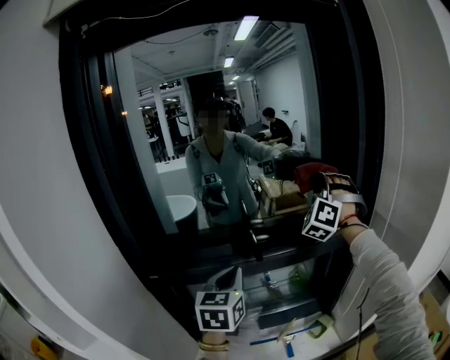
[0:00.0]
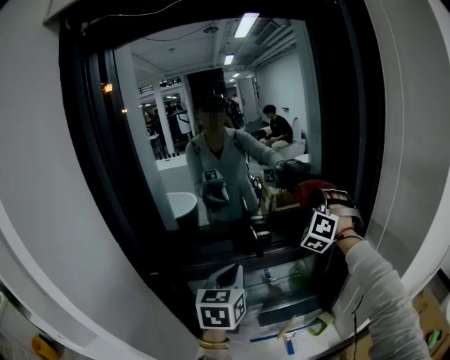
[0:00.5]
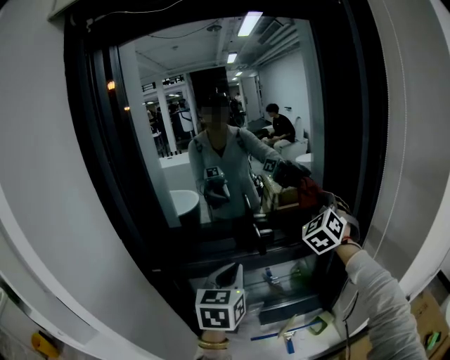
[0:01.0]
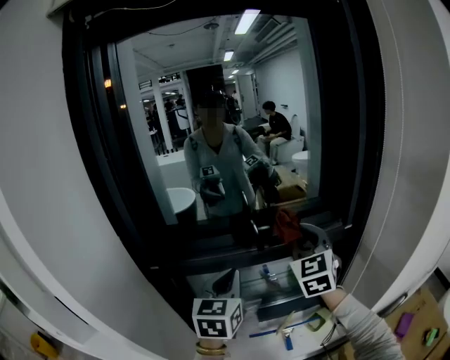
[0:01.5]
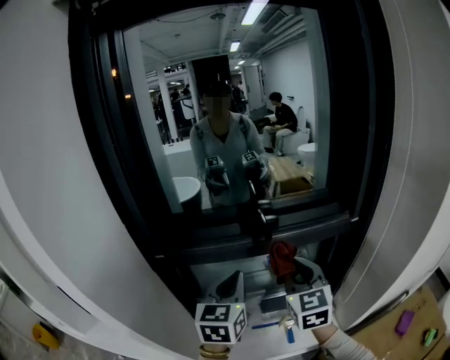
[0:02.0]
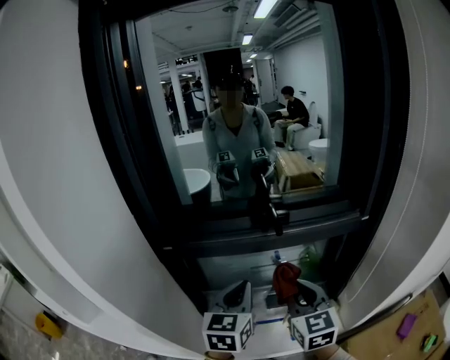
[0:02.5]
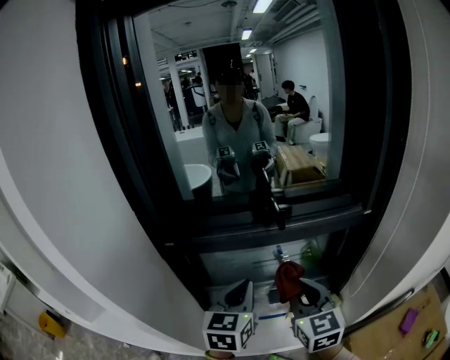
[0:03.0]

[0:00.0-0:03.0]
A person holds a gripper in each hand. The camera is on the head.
0:00.0 to 0:01.5: The right gripper shifts about 20 cm backward, downward and to the left, and rotates around the line of its fingers by roughly 60 degrees, clockwise from behind.
0:01.5 to 0:03.0: The right gripper travels backward, downward and to the left by approximately 20 cm, and rotates roughly 30 degrees, while the left gripper goes some 10 cm backward and downward.

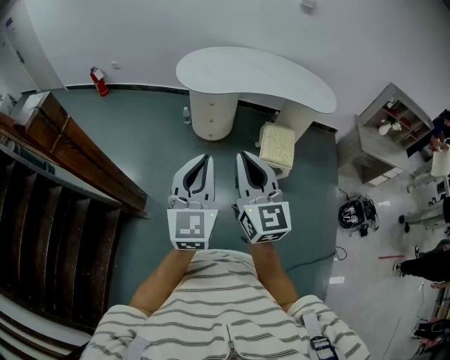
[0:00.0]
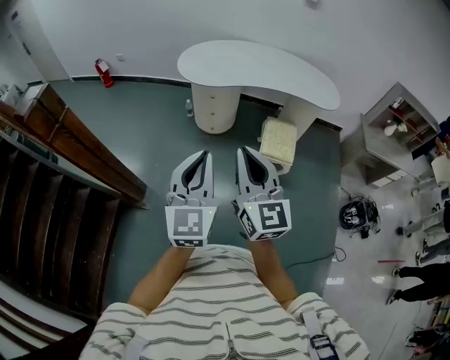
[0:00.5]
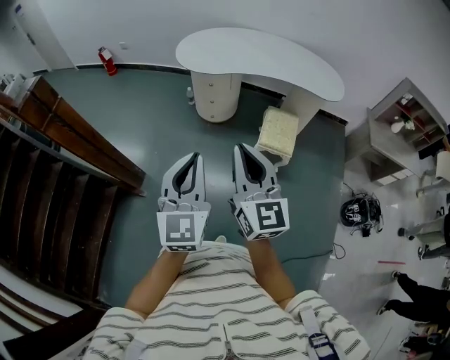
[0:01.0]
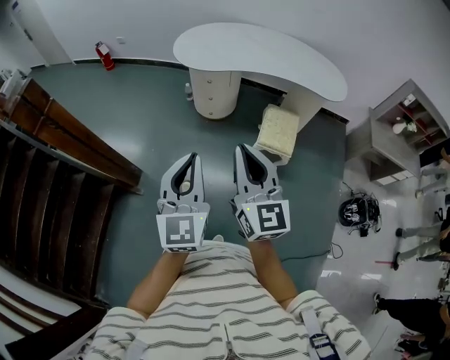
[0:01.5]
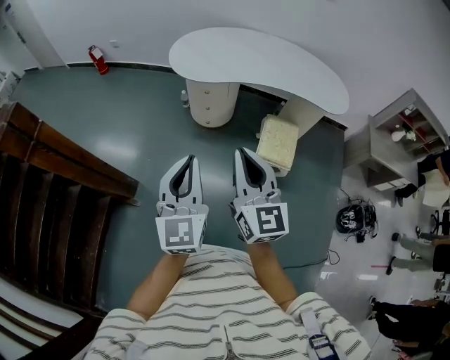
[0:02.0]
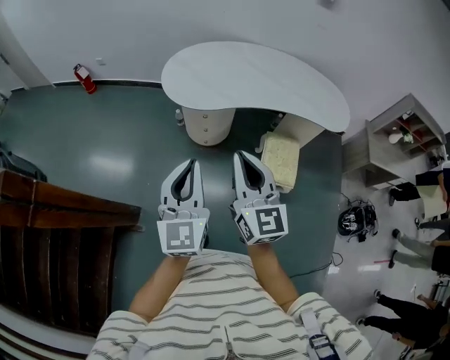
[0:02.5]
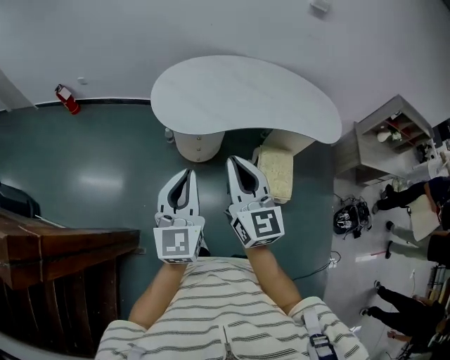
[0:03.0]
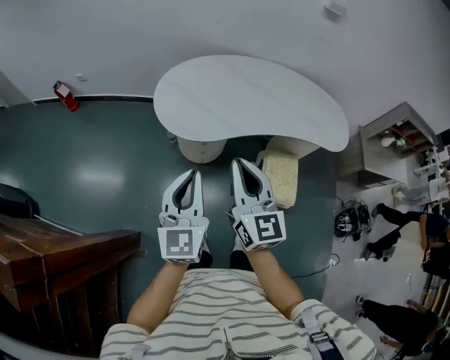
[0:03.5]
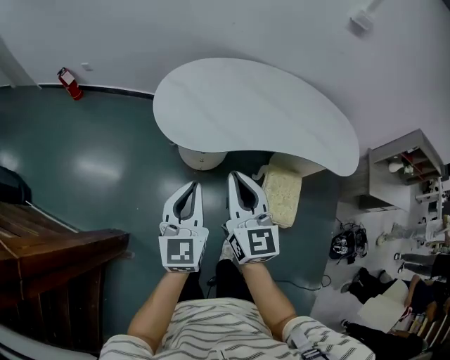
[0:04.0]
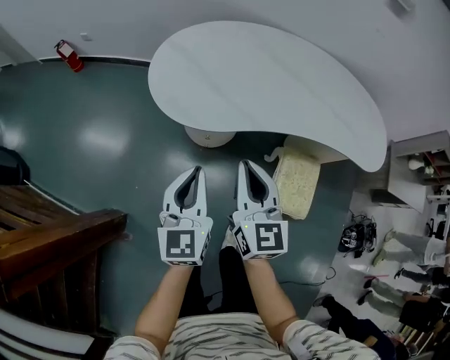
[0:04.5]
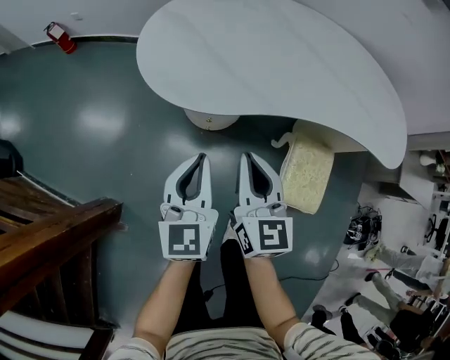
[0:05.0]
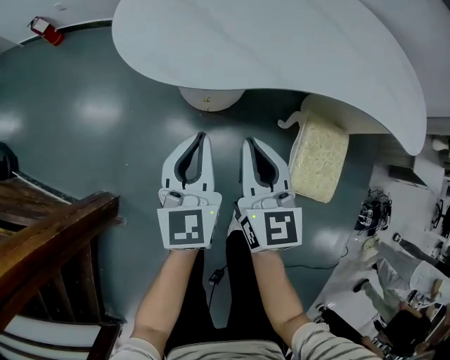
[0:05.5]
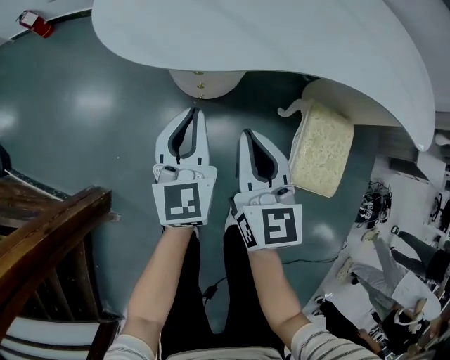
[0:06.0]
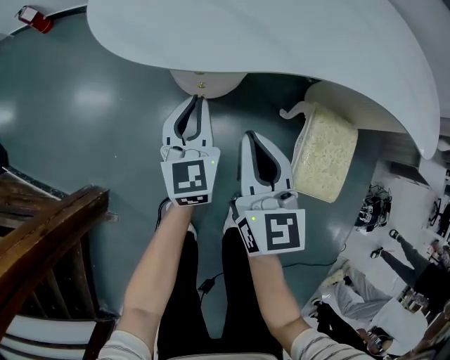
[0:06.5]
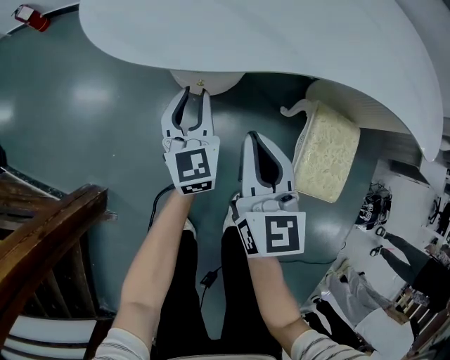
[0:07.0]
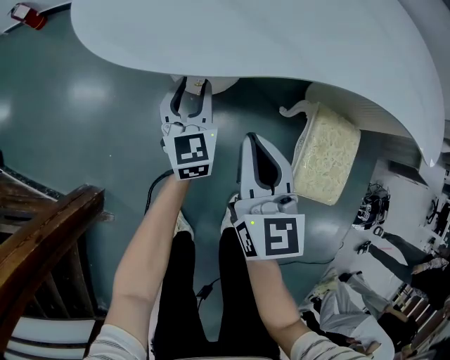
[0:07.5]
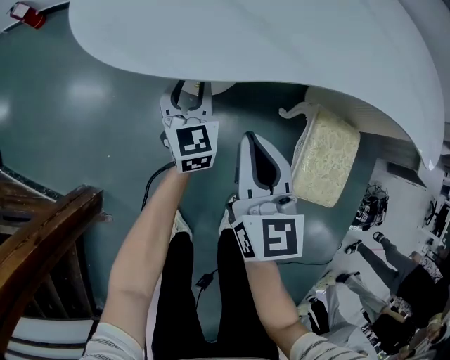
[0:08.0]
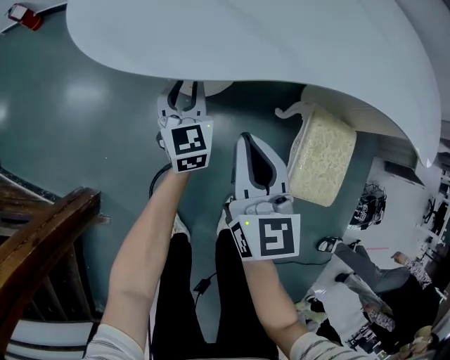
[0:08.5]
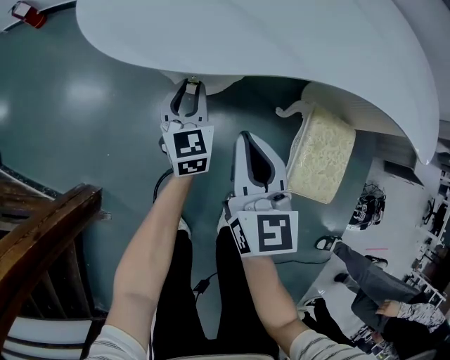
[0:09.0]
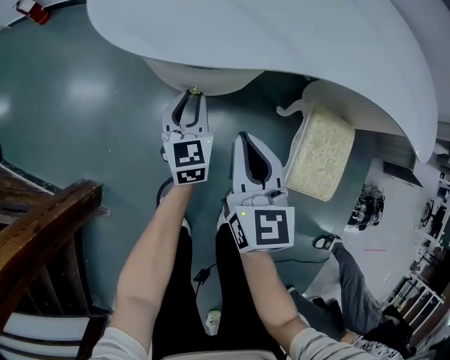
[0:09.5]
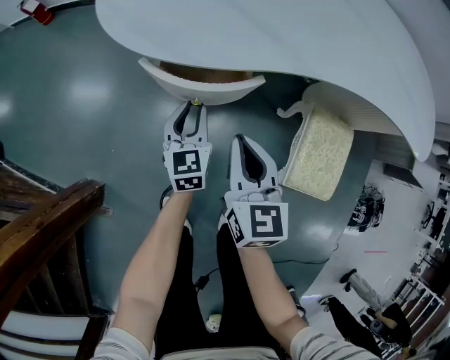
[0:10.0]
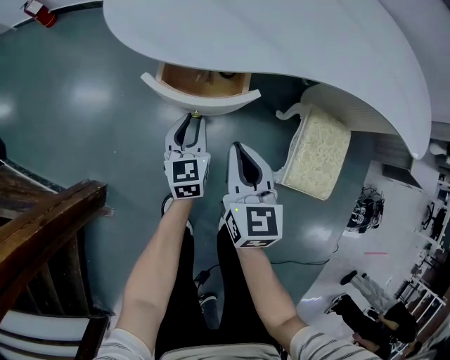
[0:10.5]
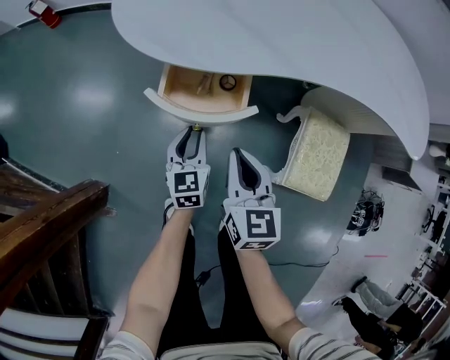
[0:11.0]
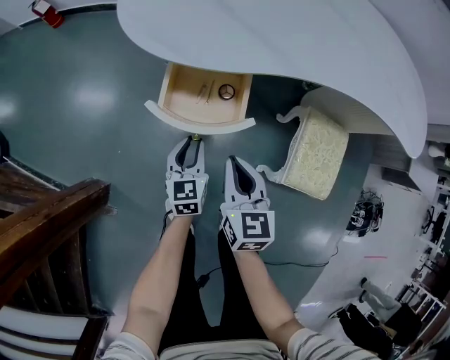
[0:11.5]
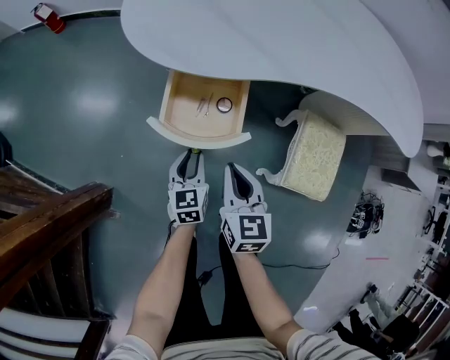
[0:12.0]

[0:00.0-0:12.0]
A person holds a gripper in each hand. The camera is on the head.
0:00.0 to 0:02.0: The left gripper is displaced forward, to the right and downward by approximately 15 cm; the right gripper goes approximately 15 cm forward and to the right.
0:02.0 to 0:04.0: Both grippers travel together forward, about 35 cm.
0:04.0 to 0:06.0: Both grippers move downward, approximately 35 cm.
0:06.0 to 0:08.0: The right gripper ends up some 5 cm from where it was, while the left gripper travels downward and forward by some 20 cm, and opens up.
0:08.0 to 0:10.0: The left gripper shifts roughly 10 cm backward.
0:10.0 to 0:12.0: The right gripper shifts approximately 10 cm backward; the left gripper heads backward, covering roughly 10 cm.

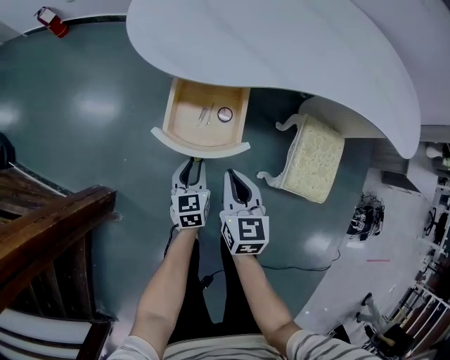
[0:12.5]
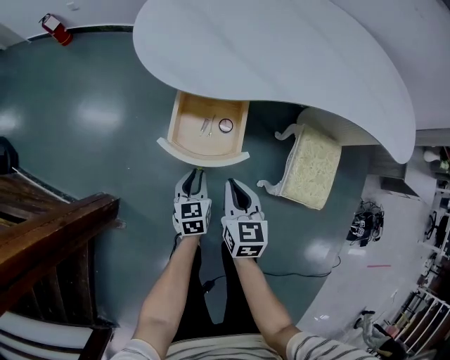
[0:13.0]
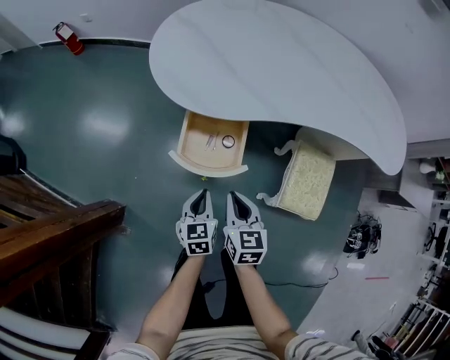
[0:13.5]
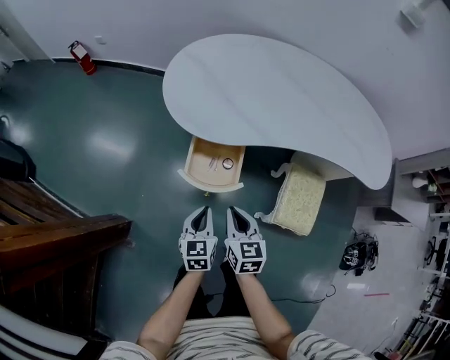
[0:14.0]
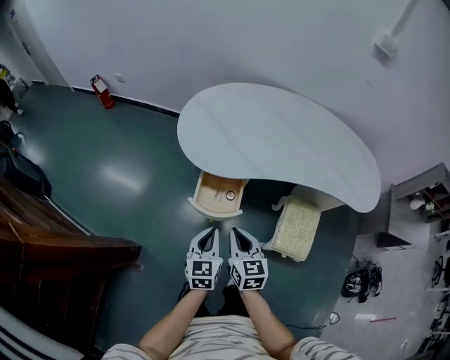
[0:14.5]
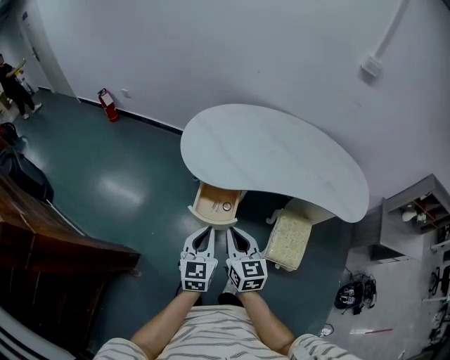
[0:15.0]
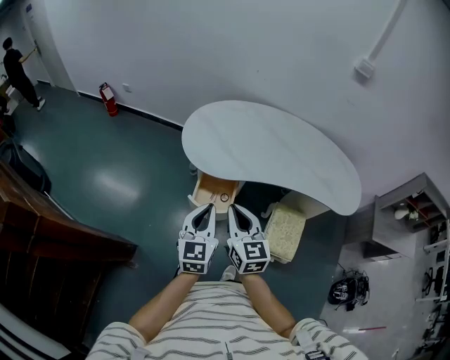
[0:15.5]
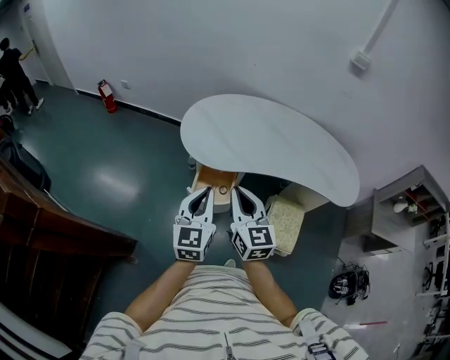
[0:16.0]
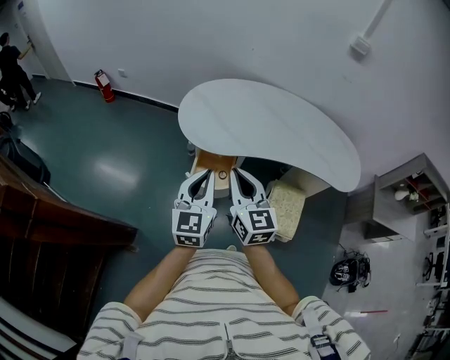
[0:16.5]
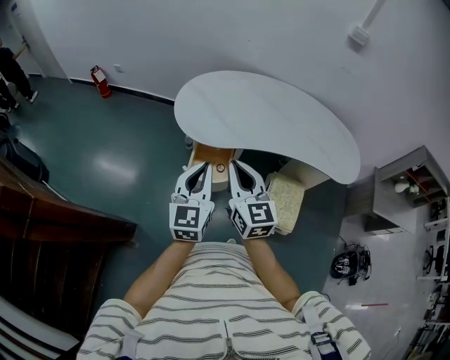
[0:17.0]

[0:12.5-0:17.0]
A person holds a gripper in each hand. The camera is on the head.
0:12.5 to 0:14.5: Both grippers move upward, some 25 cm. The left gripper closes its fingers.
0:14.5 to 0:17.0: The two grippers go roughly 20 cm upward. The left gripper turns by approximately 20 degrees. Meanwhile the right gripper turns by roughly 20 degrees.

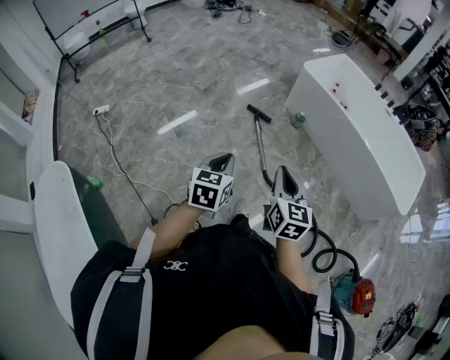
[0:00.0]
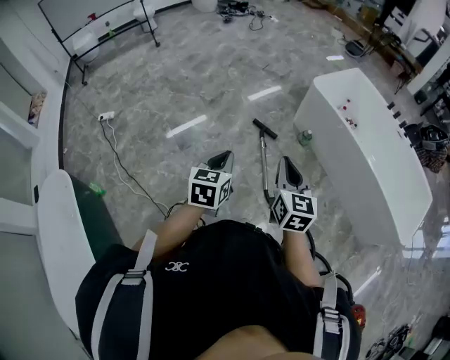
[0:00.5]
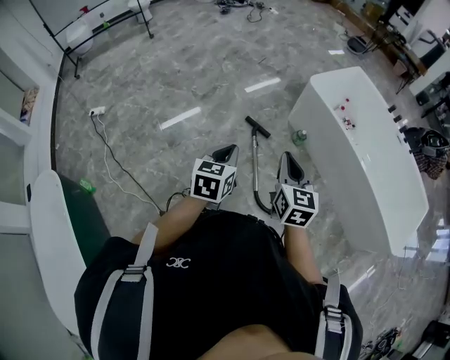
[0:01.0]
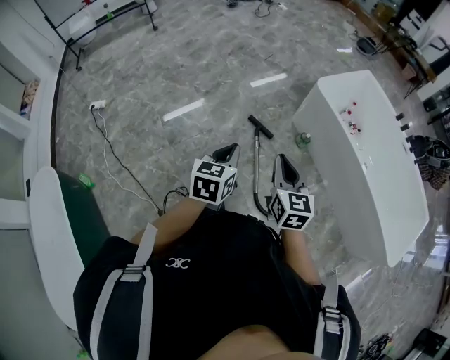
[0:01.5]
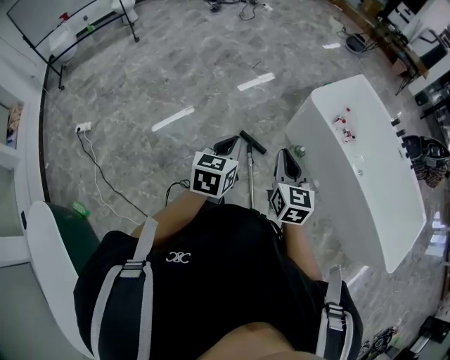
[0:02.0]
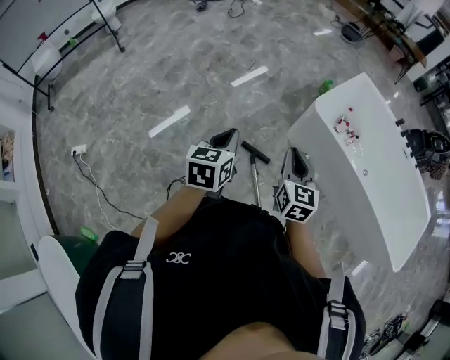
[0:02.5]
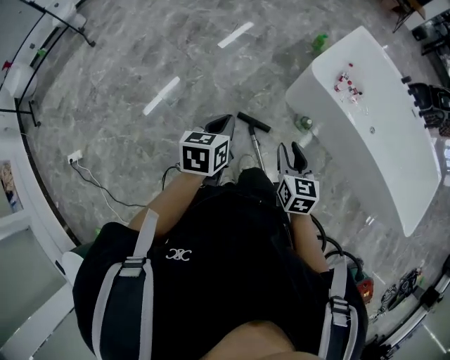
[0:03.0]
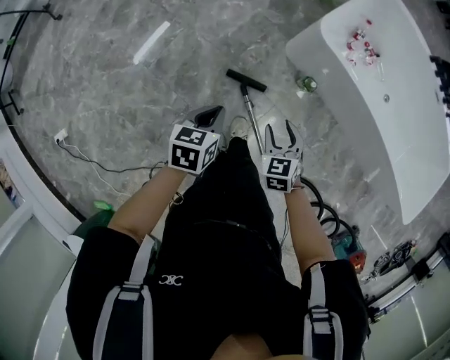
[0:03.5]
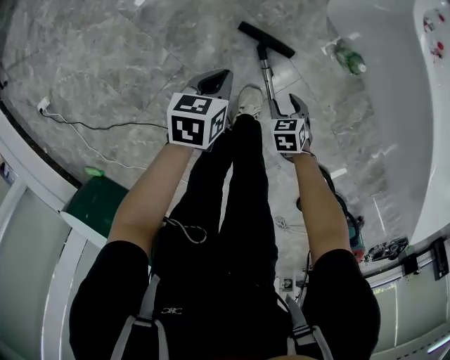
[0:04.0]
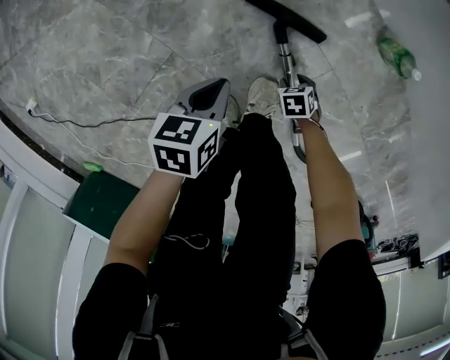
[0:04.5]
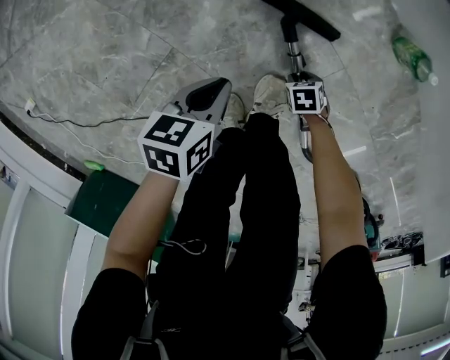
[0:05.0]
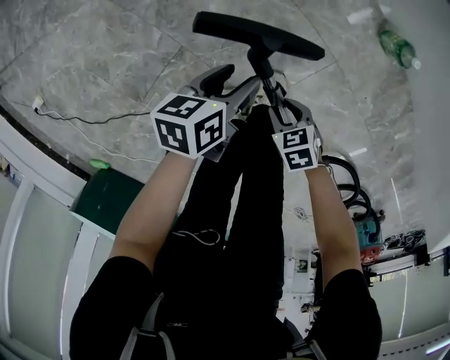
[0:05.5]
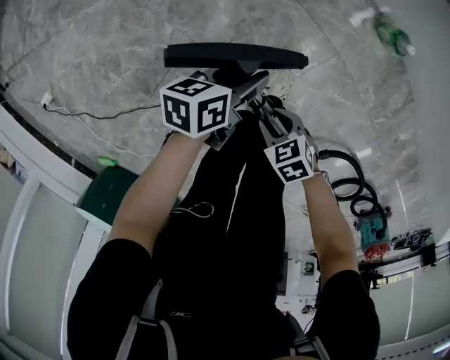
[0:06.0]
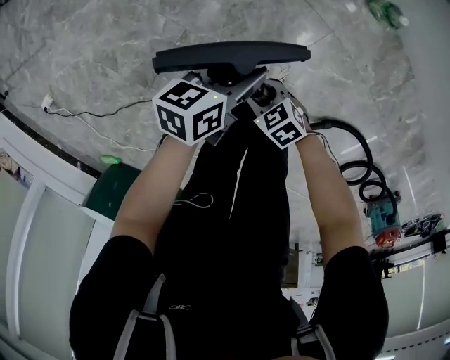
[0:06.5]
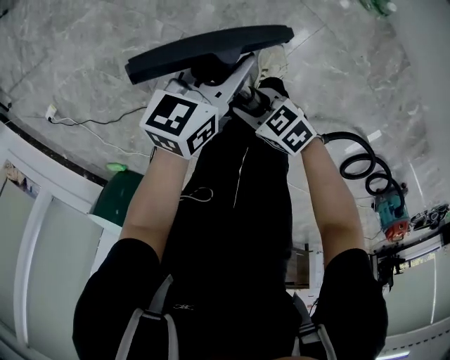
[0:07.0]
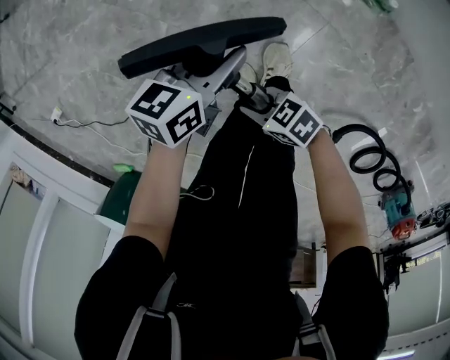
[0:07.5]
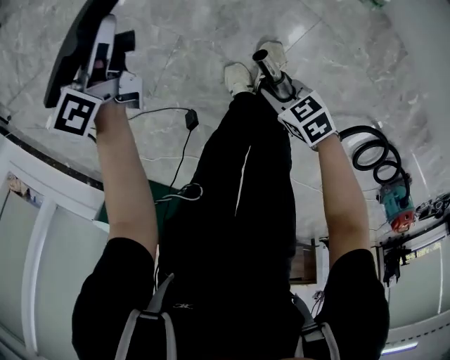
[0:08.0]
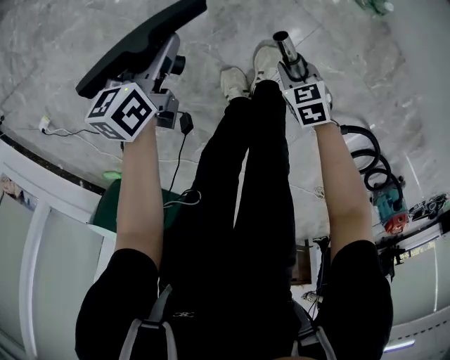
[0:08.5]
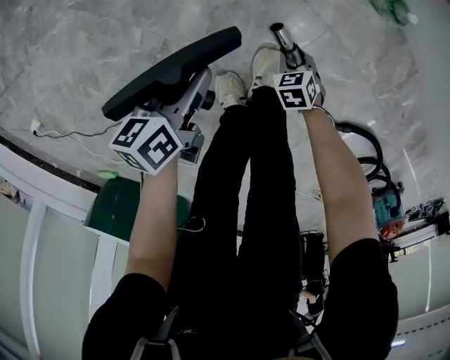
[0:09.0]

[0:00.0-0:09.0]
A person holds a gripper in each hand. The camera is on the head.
0:00.0 to 0:02.0: The pair of grippers is taken forward, approximately 50 cm.
0:02.0 to 0:04.5: Both grippers travel together downward, some 80 cm. The right gripper angles its fingers downward, by some 60 degrees, and opens its fingers. Meanwhile the left gripper points its fingers approximately 40 degrees further downward.
0:04.5 to 0:07.0: The right gripper is displaced upward by about 35 cm, and tilts its fingers some 50 degrees upward; the left gripper moves upward, roughly 20 cm, swivels about 30 degrees, and opens its fingers.
0:07.0 to 0:09.0: The left gripper travels downward by roughly 15 cm, and turns by roughly 30 degrees, while the right gripper is displaced downward by roughly 30 cm, and tilts its fingers approximately 40 degrees downward.
